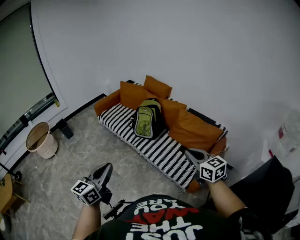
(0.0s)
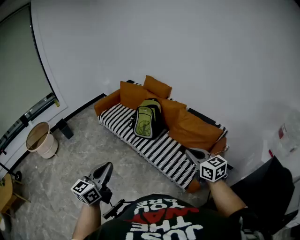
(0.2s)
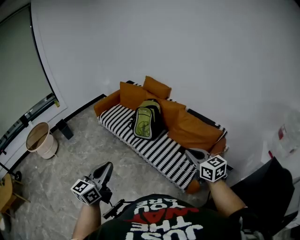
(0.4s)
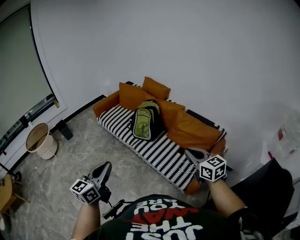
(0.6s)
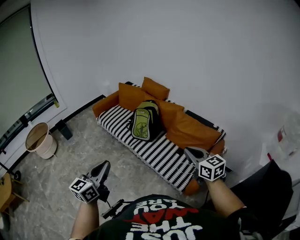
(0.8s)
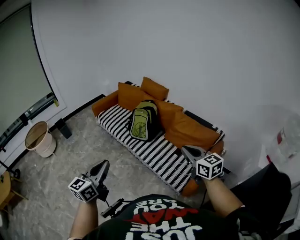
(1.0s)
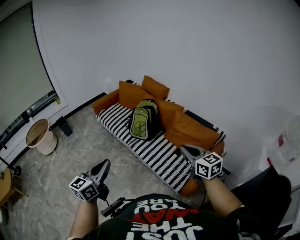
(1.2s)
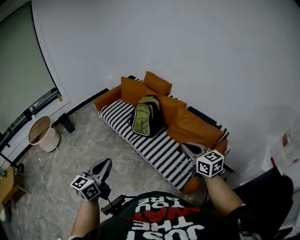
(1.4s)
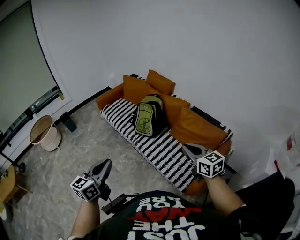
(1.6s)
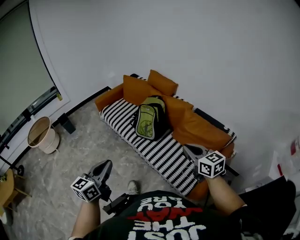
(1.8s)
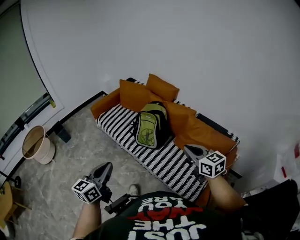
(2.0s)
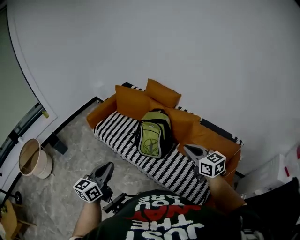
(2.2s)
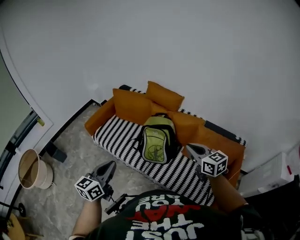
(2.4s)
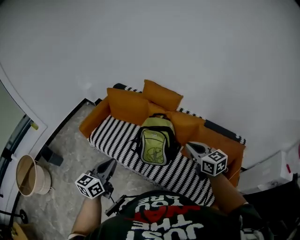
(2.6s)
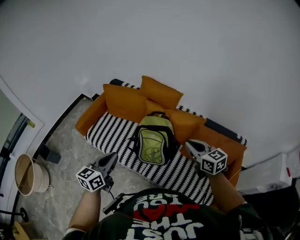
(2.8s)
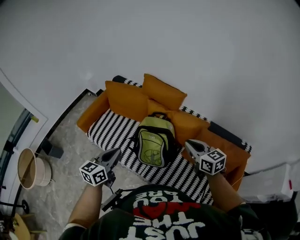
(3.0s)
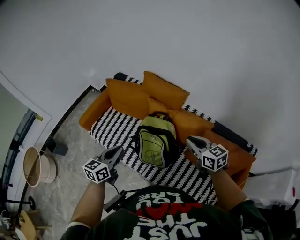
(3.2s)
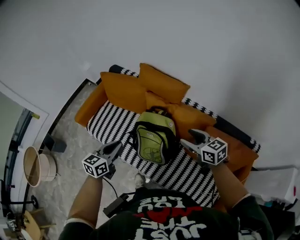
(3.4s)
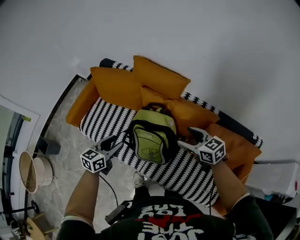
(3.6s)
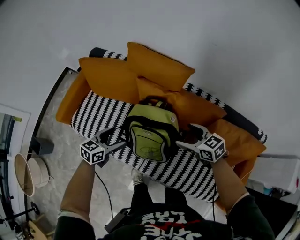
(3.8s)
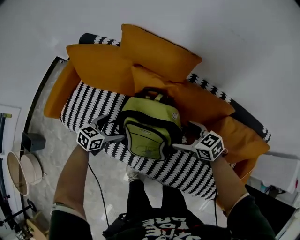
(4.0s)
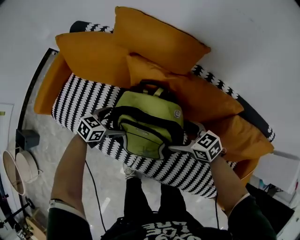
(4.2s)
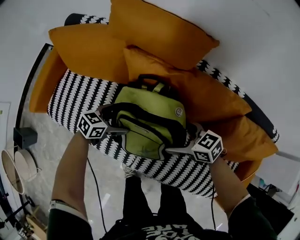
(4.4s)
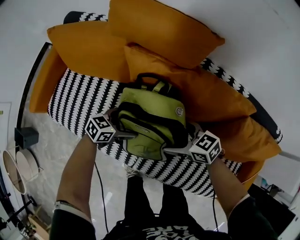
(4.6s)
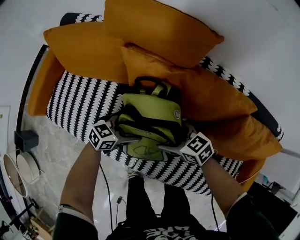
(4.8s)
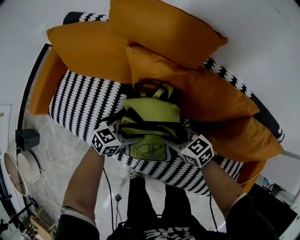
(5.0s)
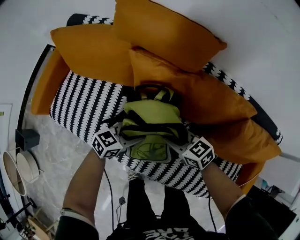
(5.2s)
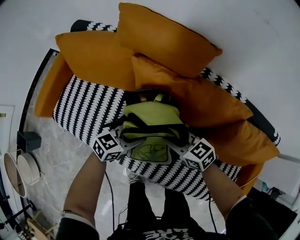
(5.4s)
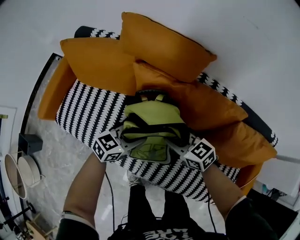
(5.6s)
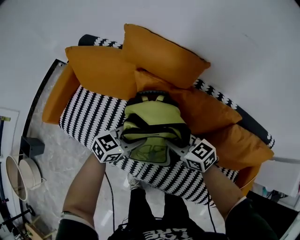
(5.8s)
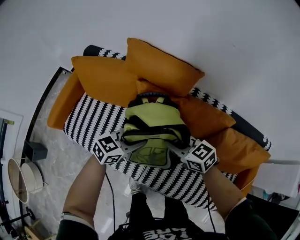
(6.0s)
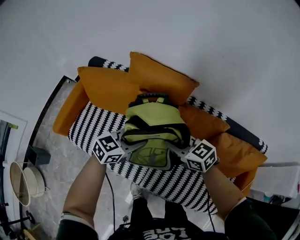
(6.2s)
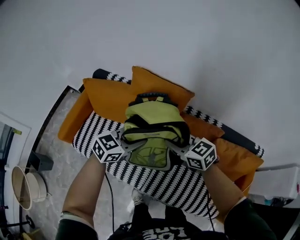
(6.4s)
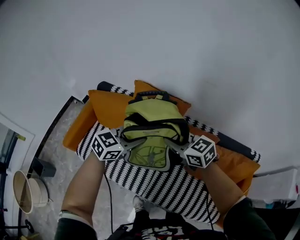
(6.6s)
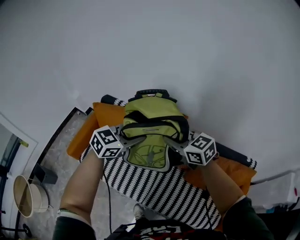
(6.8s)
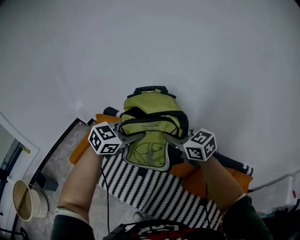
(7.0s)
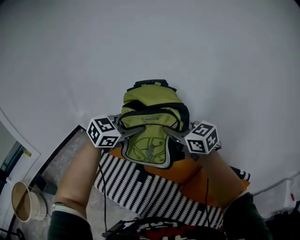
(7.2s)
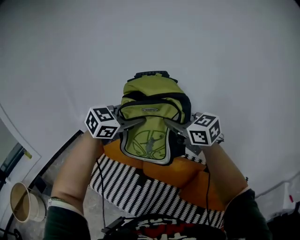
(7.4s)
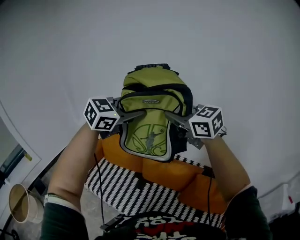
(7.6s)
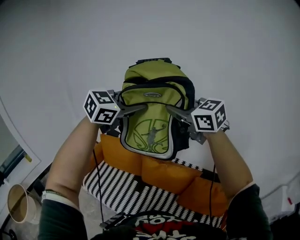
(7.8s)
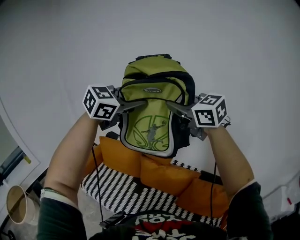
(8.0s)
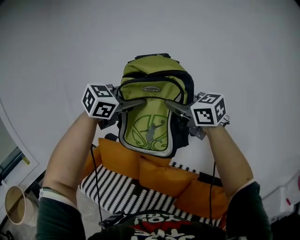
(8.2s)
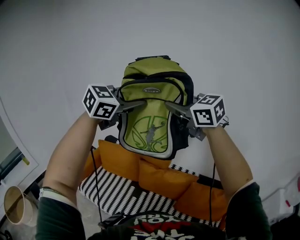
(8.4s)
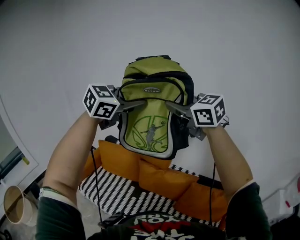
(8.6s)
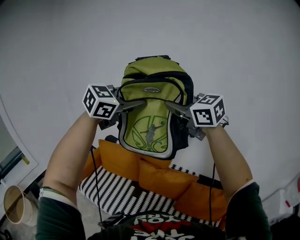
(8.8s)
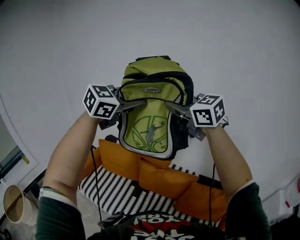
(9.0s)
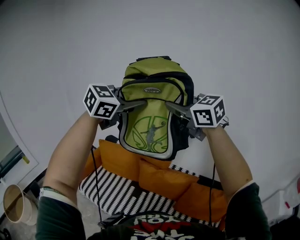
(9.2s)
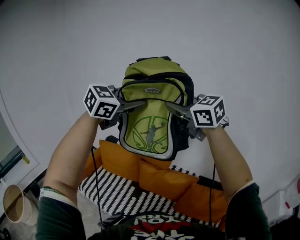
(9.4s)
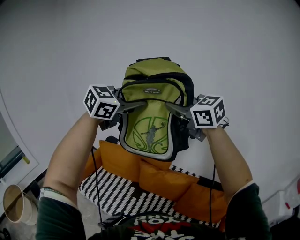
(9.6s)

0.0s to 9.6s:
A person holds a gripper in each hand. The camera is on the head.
0.0s to 1.6s: The right gripper travels forward and to the right by about 10 cm. Meanwhile the left gripper shifts about 10 cm to the right and forward.
1.6s to 3.2s: The pair of grippers is taken forward, about 60 cm. The left gripper changes its angle by some 20 degrees.
3.2s to 4.8s: The two grippers go roughly 40 cm downward. The right gripper changes its angle by about 20 degrees, and opens. The left gripper turns by about 50 degrees, and opens its fingers.
4.8s to 6.4s: The grippers both shift upward by about 15 cm. The right gripper changes its angle by roughly 20 degrees, and closes its fingers. Meanwhile the left gripper swivels approximately 20 degrees, and closes.
6.4s to 8.0s: The right gripper rotates roughly 20 degrees, while the left gripper changes its angle by roughly 30 degrees.
8.0s to 9.6s: Both grippers stay put.

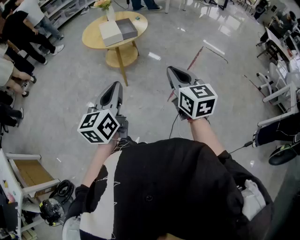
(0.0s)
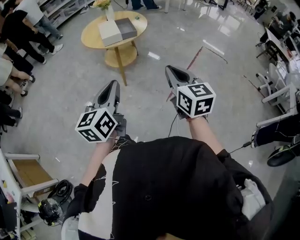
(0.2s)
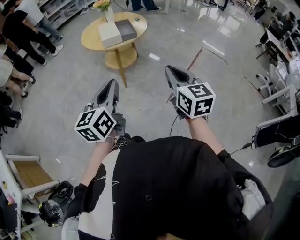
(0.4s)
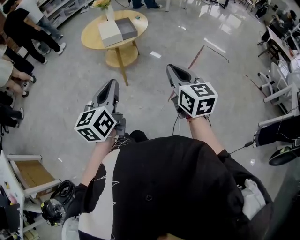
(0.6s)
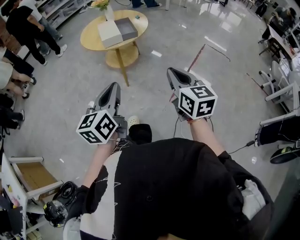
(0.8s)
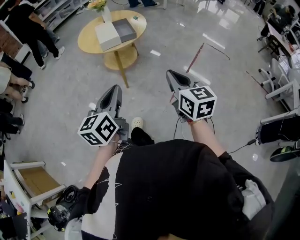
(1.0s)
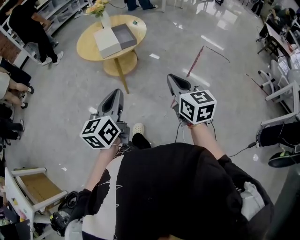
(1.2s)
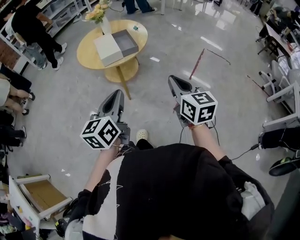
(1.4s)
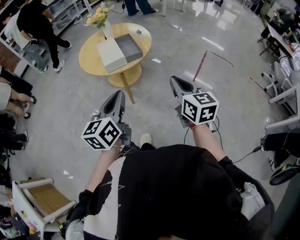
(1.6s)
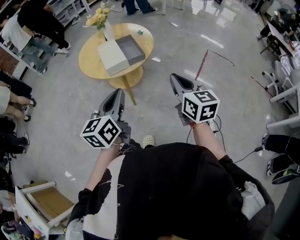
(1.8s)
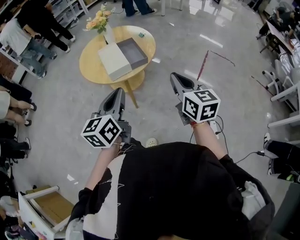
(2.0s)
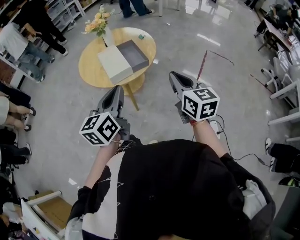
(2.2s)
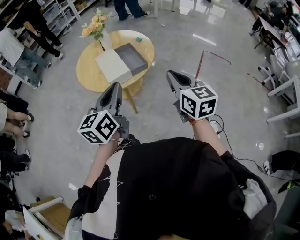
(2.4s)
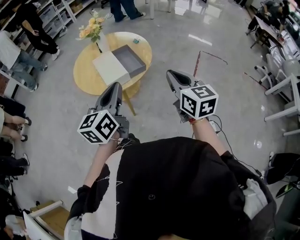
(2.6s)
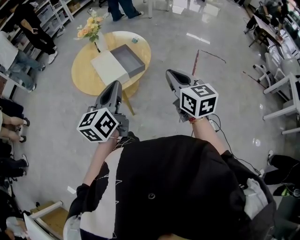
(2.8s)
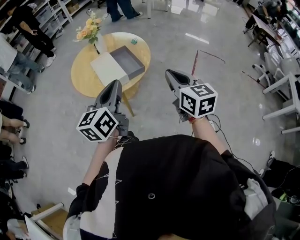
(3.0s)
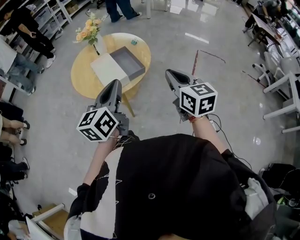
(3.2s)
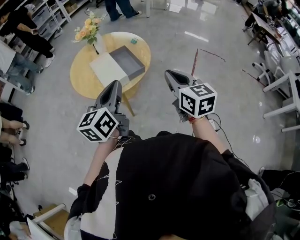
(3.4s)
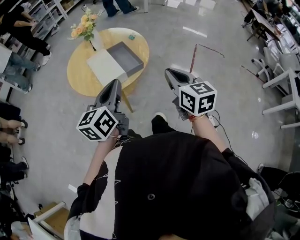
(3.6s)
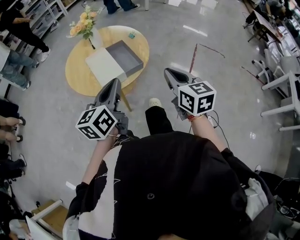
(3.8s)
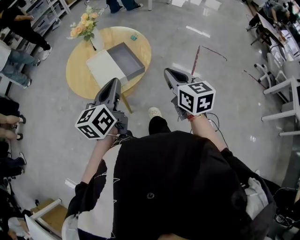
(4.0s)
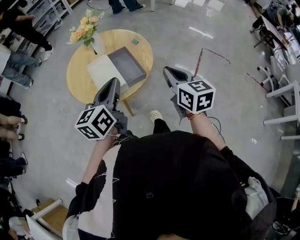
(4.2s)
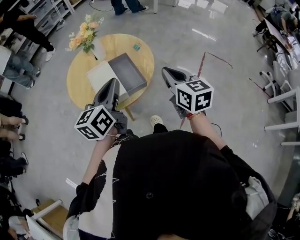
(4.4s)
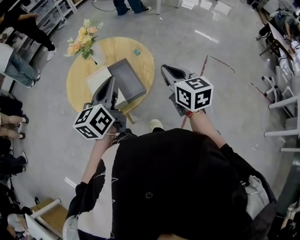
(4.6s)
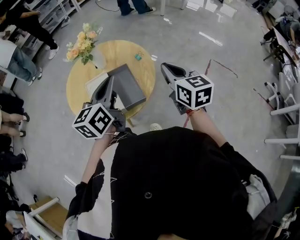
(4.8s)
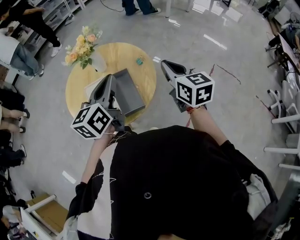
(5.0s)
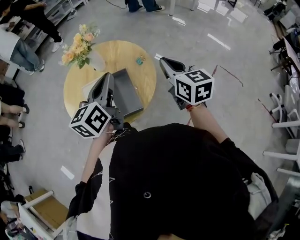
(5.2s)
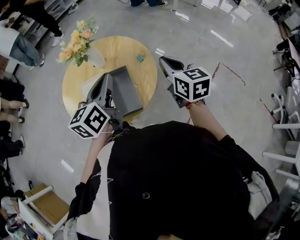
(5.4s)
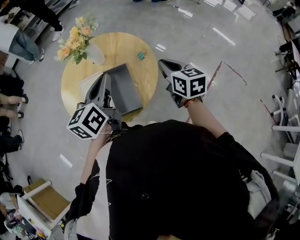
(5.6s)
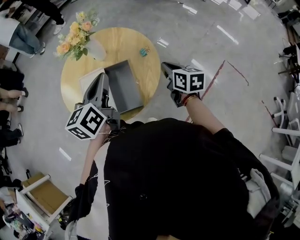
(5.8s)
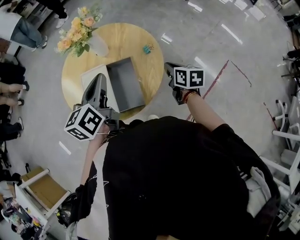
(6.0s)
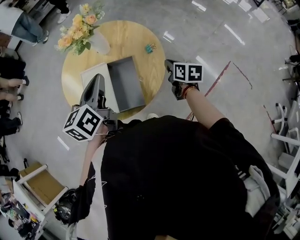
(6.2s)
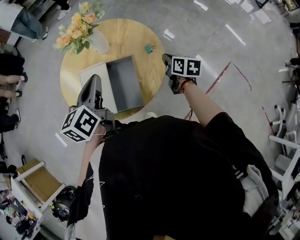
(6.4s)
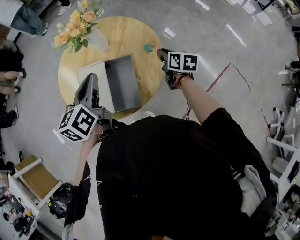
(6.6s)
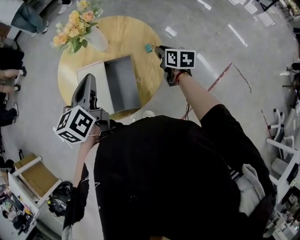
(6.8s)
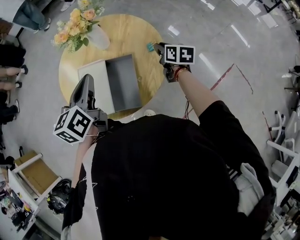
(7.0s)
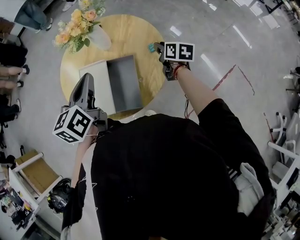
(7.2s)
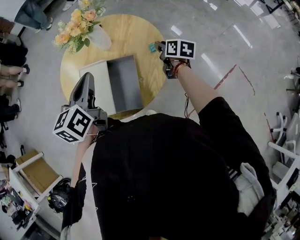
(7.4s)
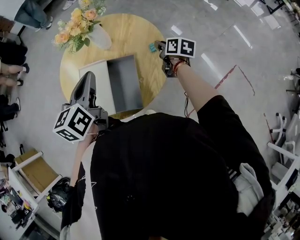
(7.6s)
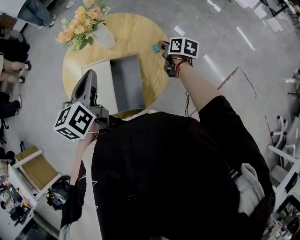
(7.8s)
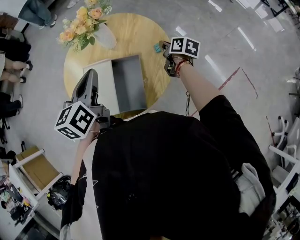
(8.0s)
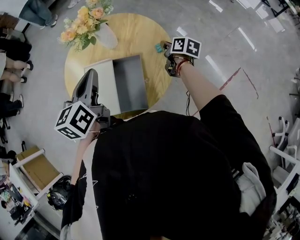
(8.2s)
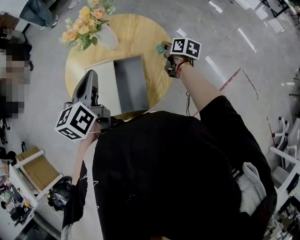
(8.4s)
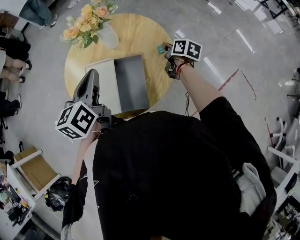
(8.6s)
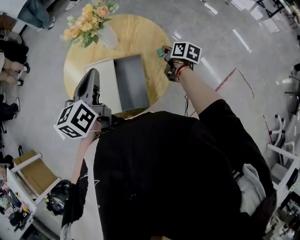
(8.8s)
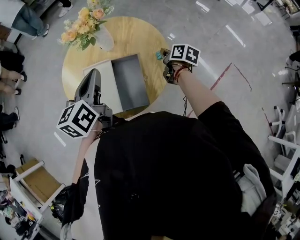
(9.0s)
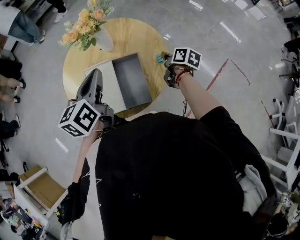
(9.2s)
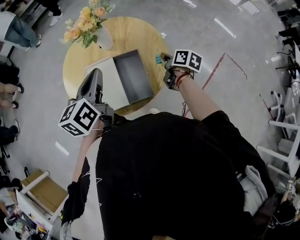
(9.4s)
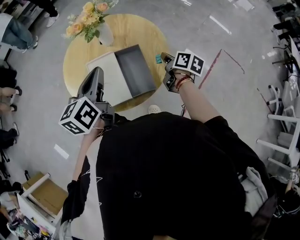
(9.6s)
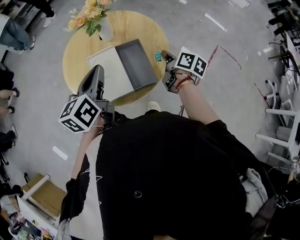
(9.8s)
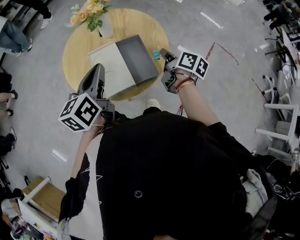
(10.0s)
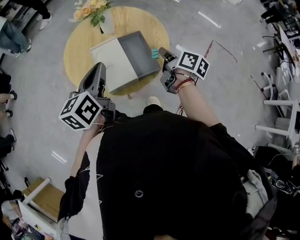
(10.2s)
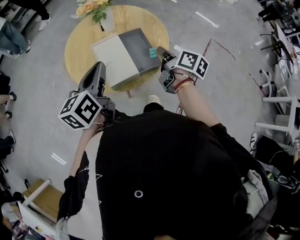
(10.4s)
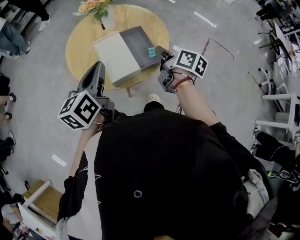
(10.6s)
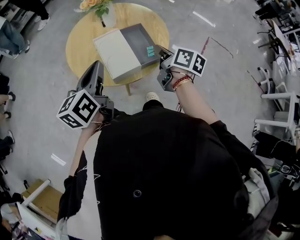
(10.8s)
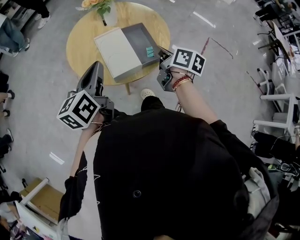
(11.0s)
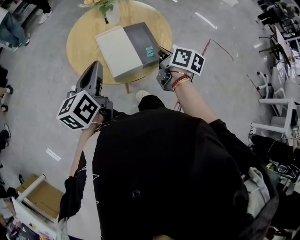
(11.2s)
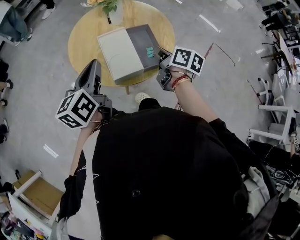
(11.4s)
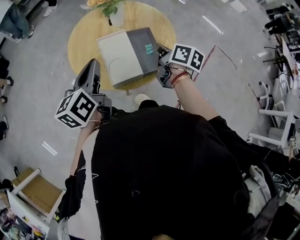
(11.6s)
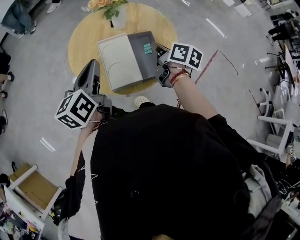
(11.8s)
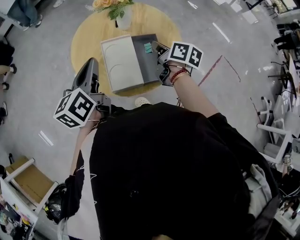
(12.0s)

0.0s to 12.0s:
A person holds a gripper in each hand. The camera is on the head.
0.0s to 1.6s: Both grippers travel together forward, about 20 cm.
1.6s to 3.0s: The left gripper is displaced forward by roughly 15 cm, while the right gripper is displaced forward and to the left by about 15 cm.
3.0s to 4.4s: The grippers both shift forward by roughly 15 cm.
4.4s to 6.0s: The left gripper travels forward by approximately 15 cm, and turns by approximately 20 degrees. Meanwhile the right gripper moves forward and downward, some 30 cm, and swivels some 30 degrees.
6.0s to 7.6s: The right gripper goes roughly 15 cm forward, and opens.
7.6s to 9.0s: The right gripper closes its fingers.
9.0s to 10.4s: The right gripper is displaced backward and upward by some 25 cm, and swivels some 20 degrees; the left gripper shifts about 15 cm backward and to the left.
10.4s to 12.0s: The left gripper moves roughly 5 cm. The right gripper goes about 10 cm forward and to the left.

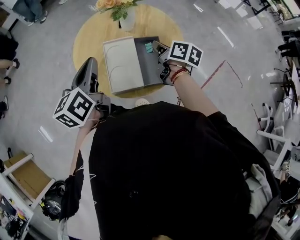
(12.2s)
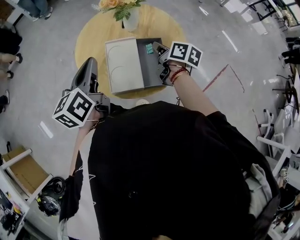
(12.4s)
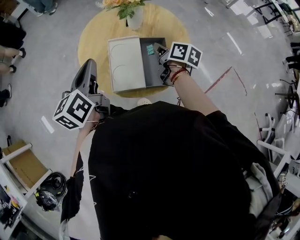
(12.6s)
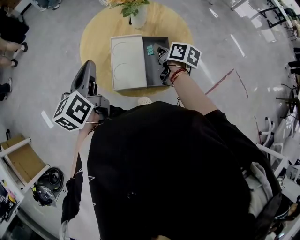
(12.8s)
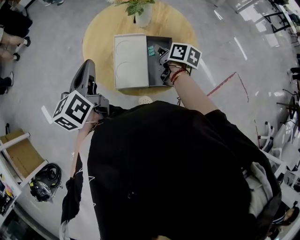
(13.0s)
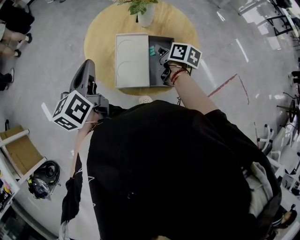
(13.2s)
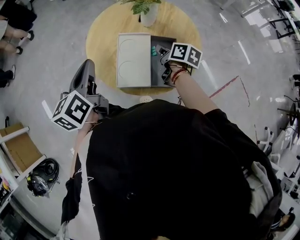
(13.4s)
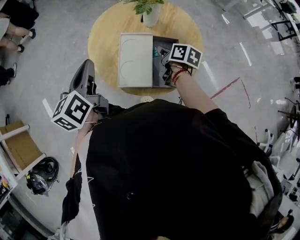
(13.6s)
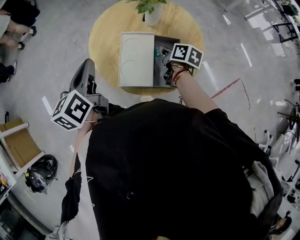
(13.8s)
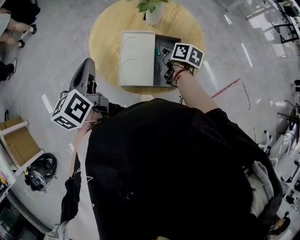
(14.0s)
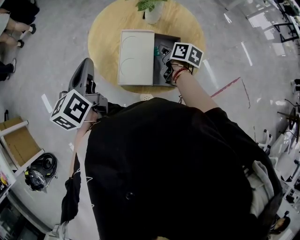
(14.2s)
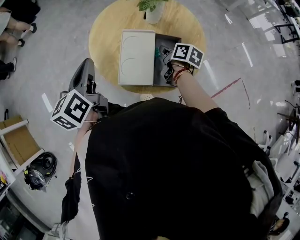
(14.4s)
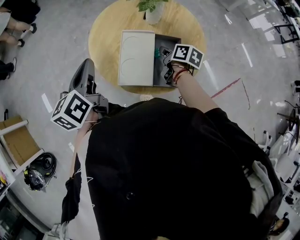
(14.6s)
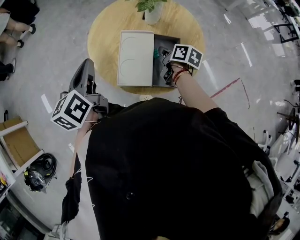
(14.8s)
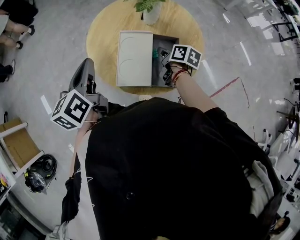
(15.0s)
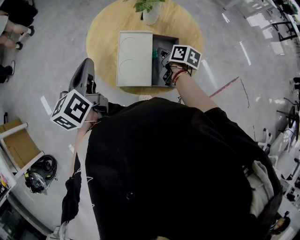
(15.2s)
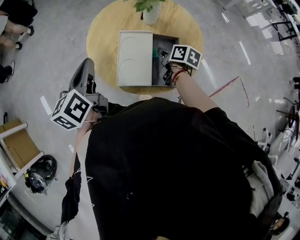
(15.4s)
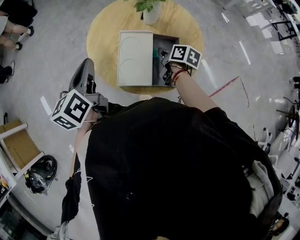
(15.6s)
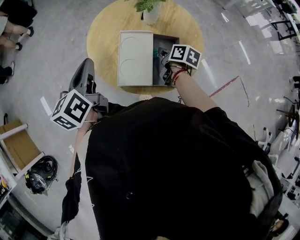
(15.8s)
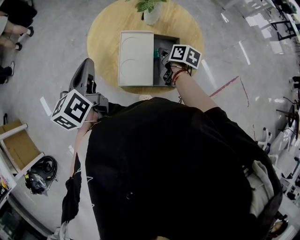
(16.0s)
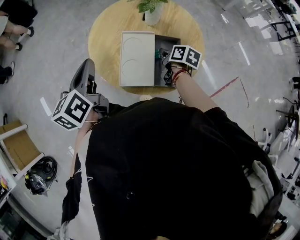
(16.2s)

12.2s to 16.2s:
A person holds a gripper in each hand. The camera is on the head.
12.2s to 13.6s: The left gripper goes approximately 5 cm to the left; the right gripper heads downward, covering about 5 cm.
13.6s to 16.2s: The grippers make only small movements.
